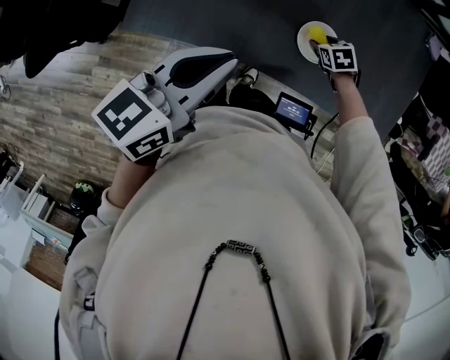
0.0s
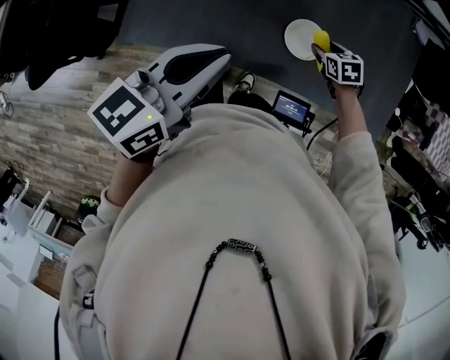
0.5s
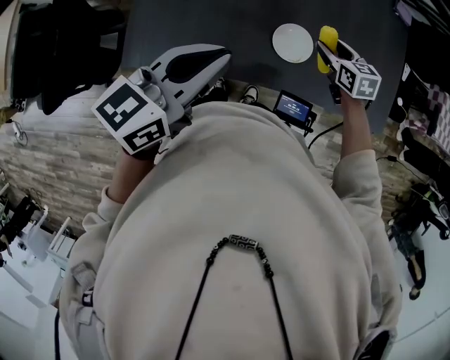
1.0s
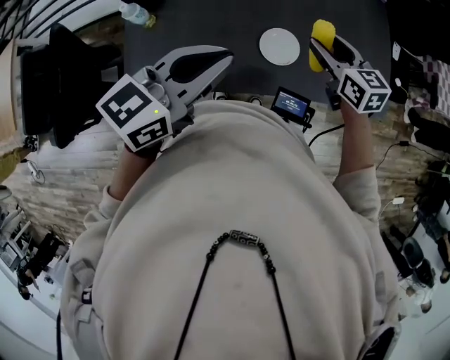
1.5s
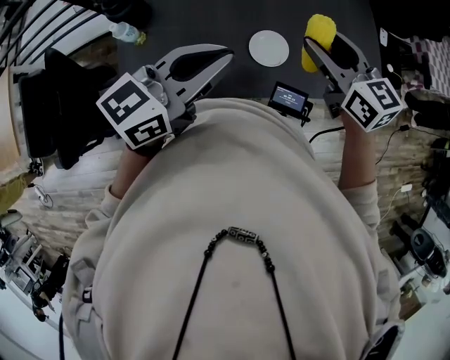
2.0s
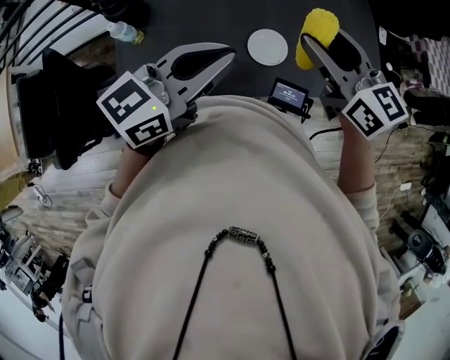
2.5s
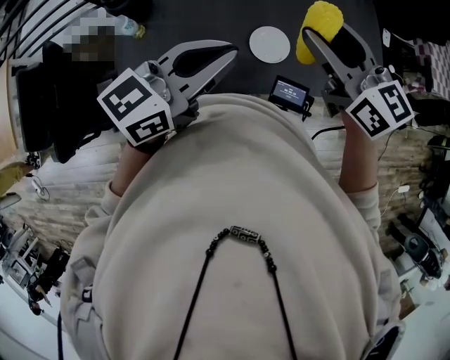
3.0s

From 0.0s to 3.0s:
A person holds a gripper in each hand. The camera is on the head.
From 0.0s to 1.5s: The right gripper travels upward by approximately 30 cm, and tips its fingers upward by about 50 degrees, while the left gripper goes roughly 5 cm upward, and changes its angle by approximately 30 degrees.
From 1.5s to 3.0s: The right gripper goes roughly 15 cm upward, and rotates roughly 20 degrees.

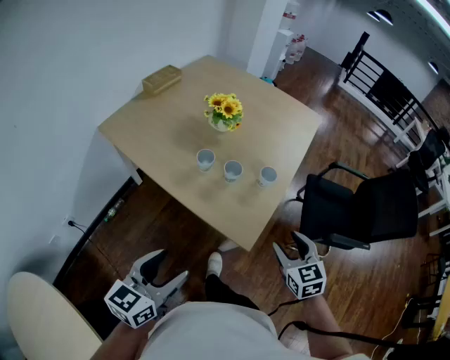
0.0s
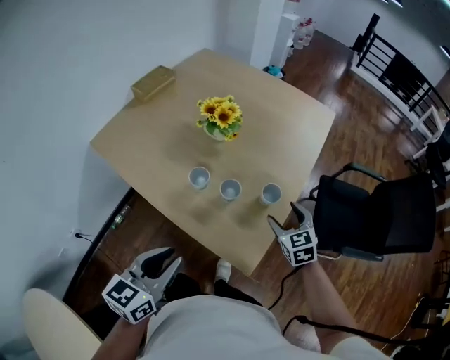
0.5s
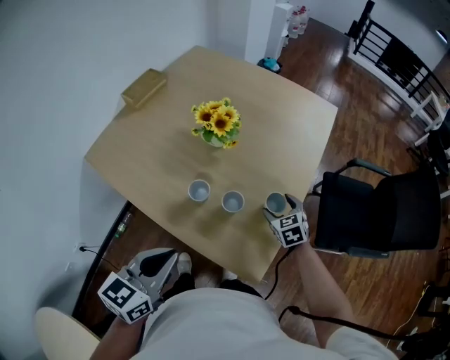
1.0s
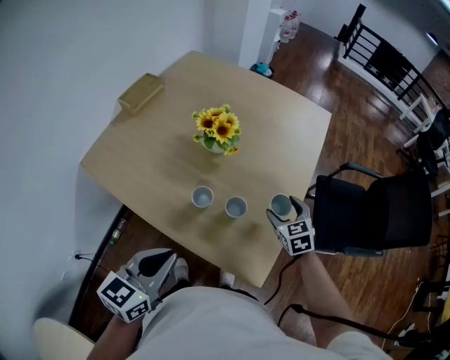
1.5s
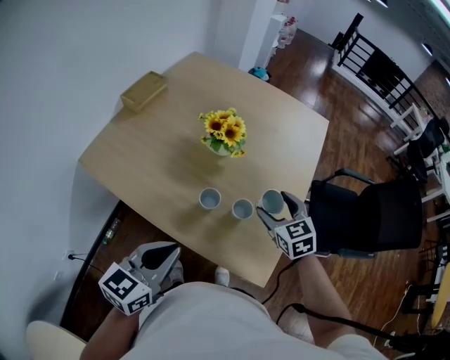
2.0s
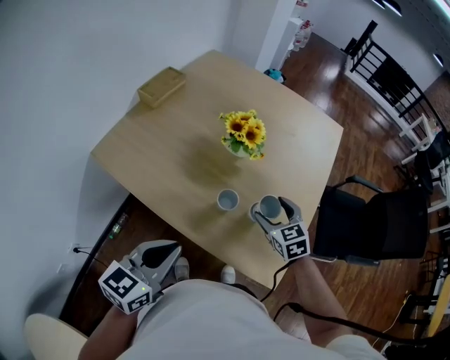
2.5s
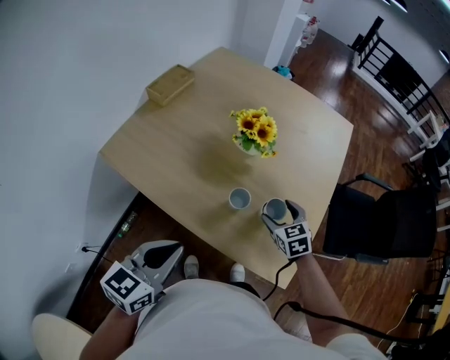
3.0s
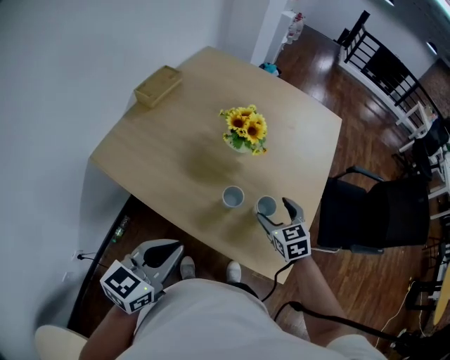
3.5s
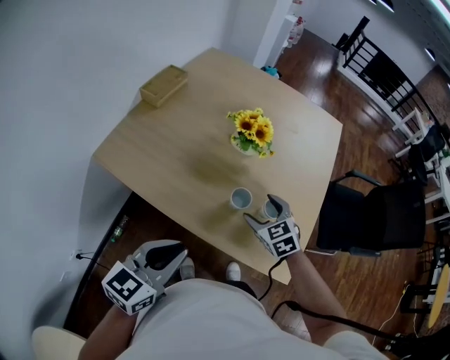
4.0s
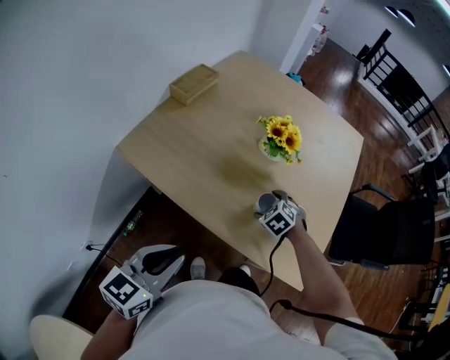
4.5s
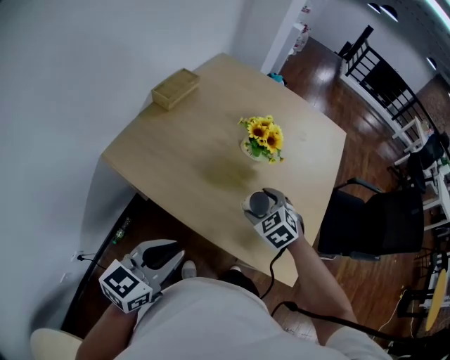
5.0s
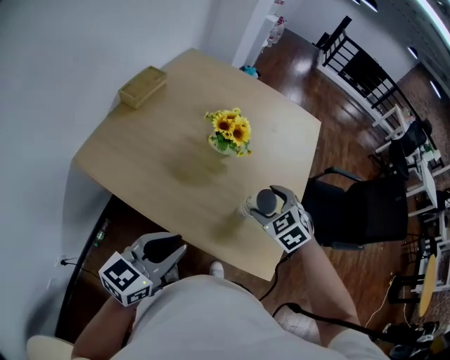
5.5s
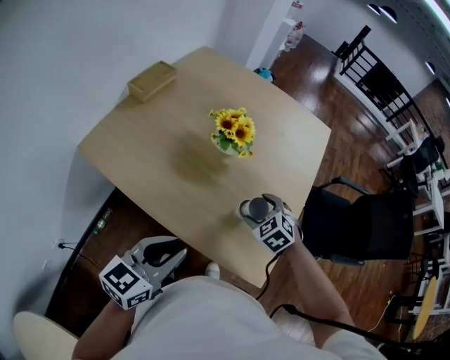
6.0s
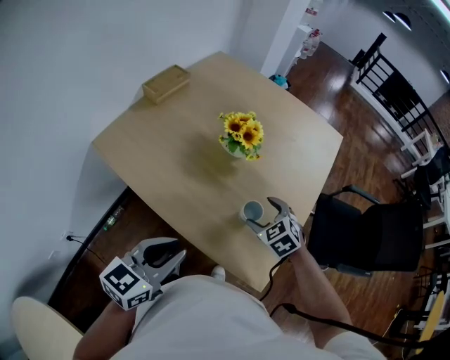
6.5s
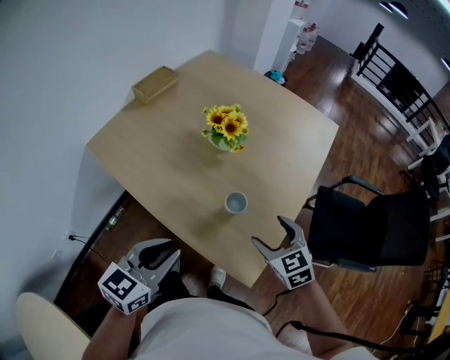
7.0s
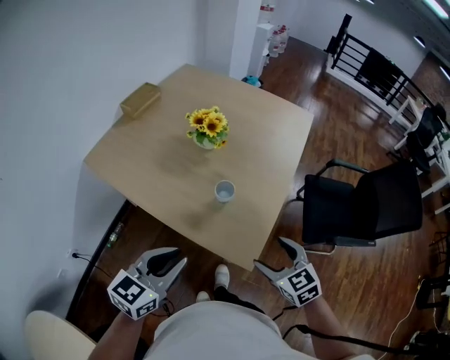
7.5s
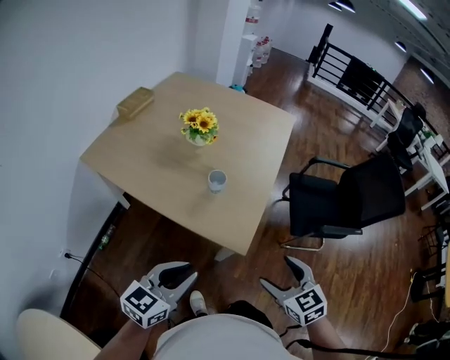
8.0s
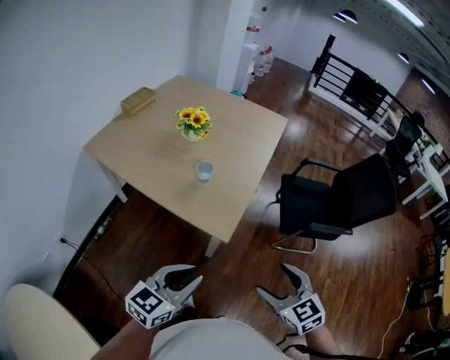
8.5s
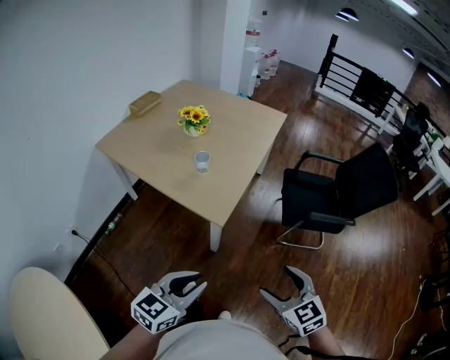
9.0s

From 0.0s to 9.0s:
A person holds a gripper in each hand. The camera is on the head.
From 0.0s to 2.0s: Both grippers travel together forward and to the left, approximately 30 cm. The left gripper closes up.
From 2.0s to 4.5s: The right gripper moves to the left and downward, roughly 25 cm, and turns by roughly 40 degrees. The left gripper shifts about 15 cm to the left.
From 4.5s to 7.0s: The left gripper heads to the right, covering about 20 cm; the right gripper heads to the right, upward and backward, covering some 25 cm, and changes its angle by some 30 degrees.
From 7.0s to 9.0s: The two grippers travel together, backward and to the right, approximately 50 cm.

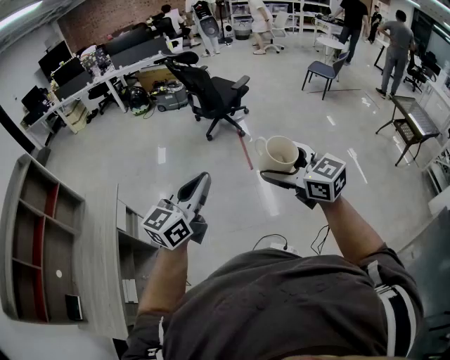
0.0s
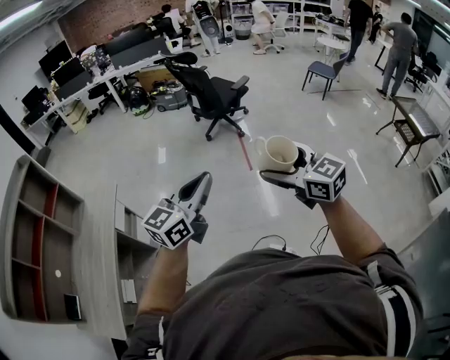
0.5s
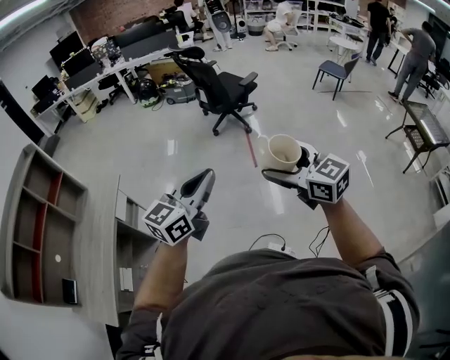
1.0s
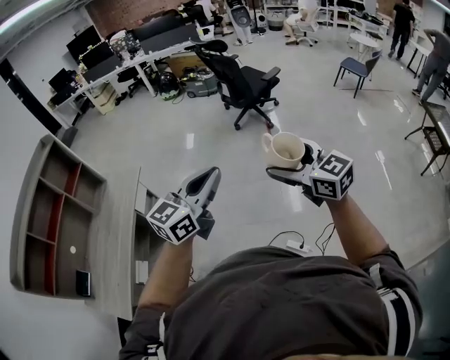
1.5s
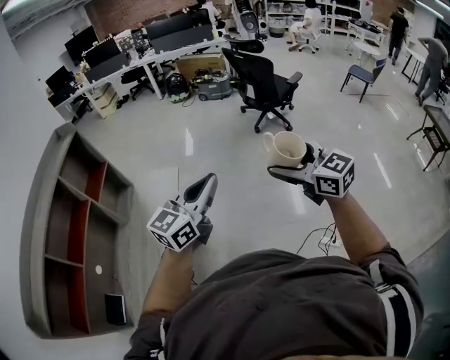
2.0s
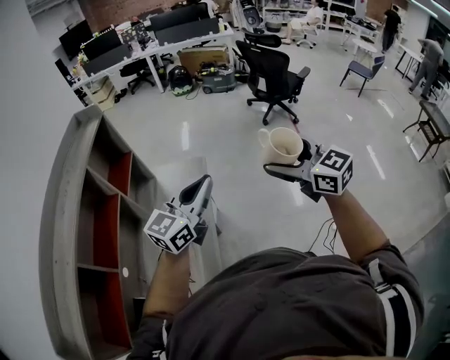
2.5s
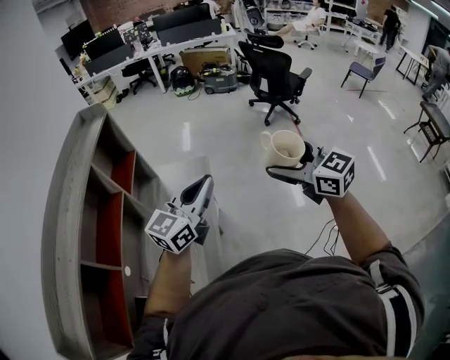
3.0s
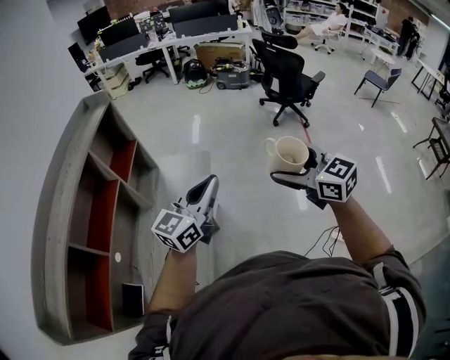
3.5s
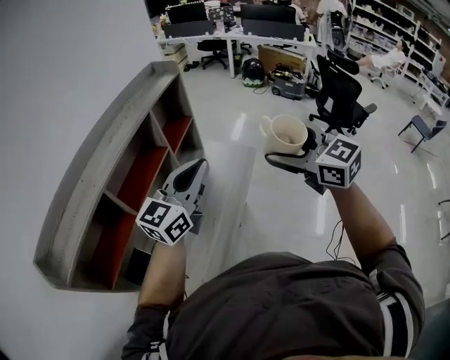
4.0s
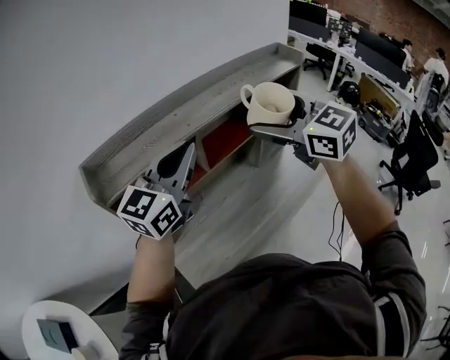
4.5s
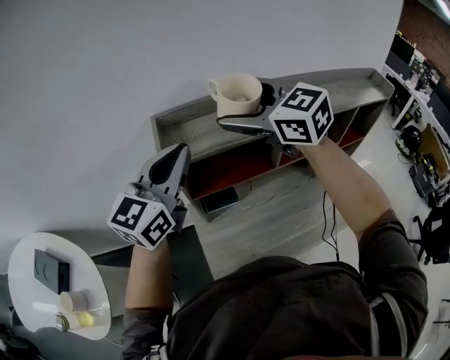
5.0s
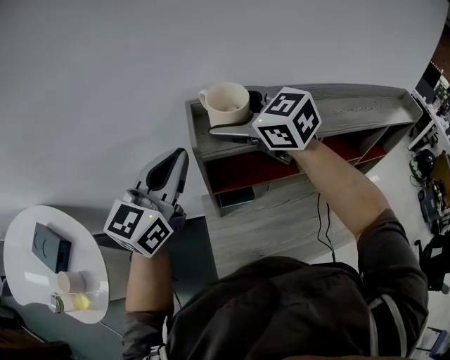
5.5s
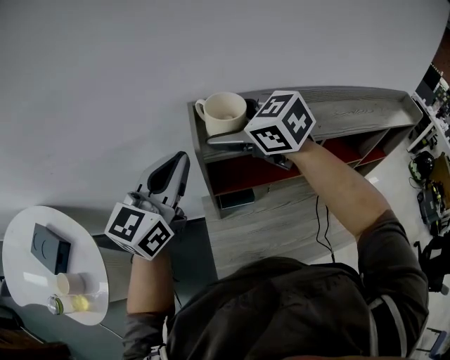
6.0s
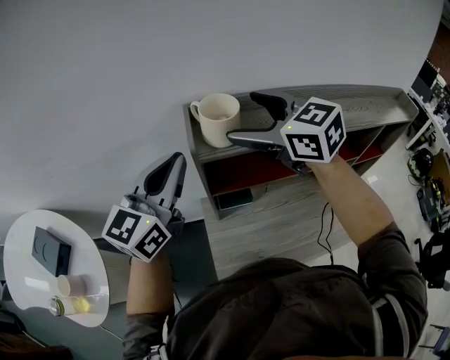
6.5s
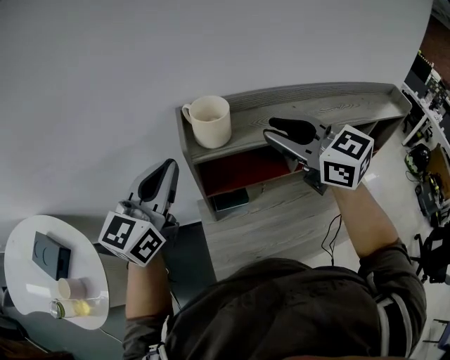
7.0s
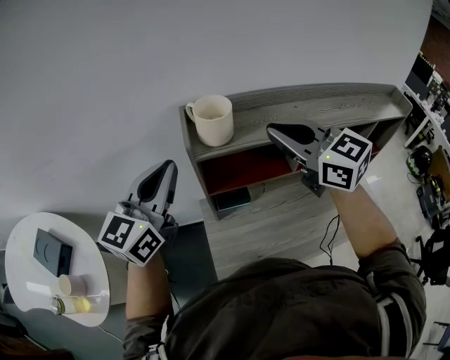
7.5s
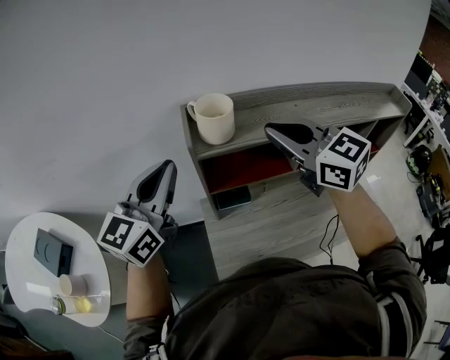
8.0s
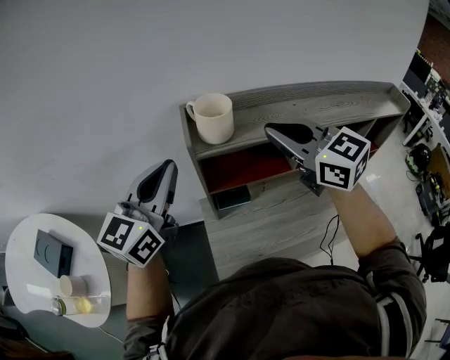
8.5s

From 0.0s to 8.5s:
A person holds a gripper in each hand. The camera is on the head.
From 0.0s to 2.0s: Both grippers travel together to the left, about 35 cm.
From 2.0s to 4.0s: The two grippers go approximately 35 cm to the left. The left gripper swivels some 30 degrees, while the right gripper changes its angle by approximately 20 degrees.
From 4.0s to 6.5s: The pair of grippers is taken about 60 cm. The right gripper changes its angle by about 70 degrees. The left gripper swivels approximately 70 degrees.
From 6.5s to 8.5s: The right gripper heads backward and to the right, covering roughly 10 cm, and closes its fingers.

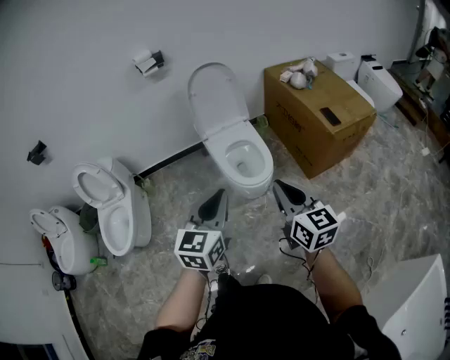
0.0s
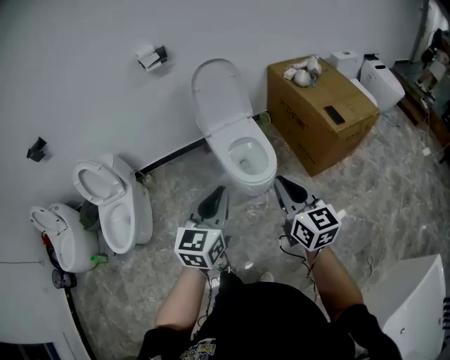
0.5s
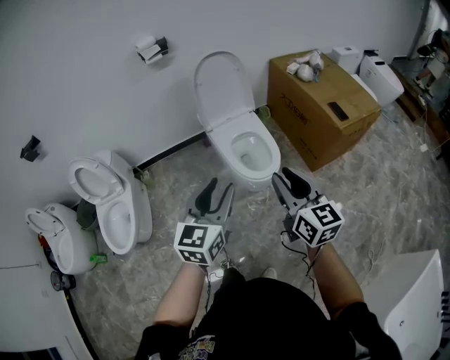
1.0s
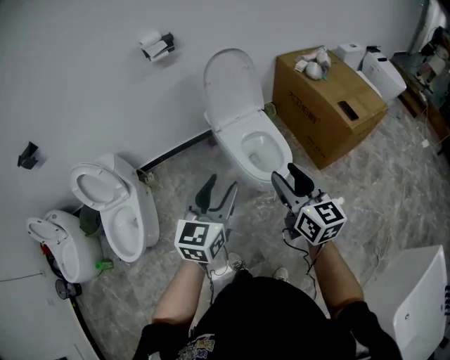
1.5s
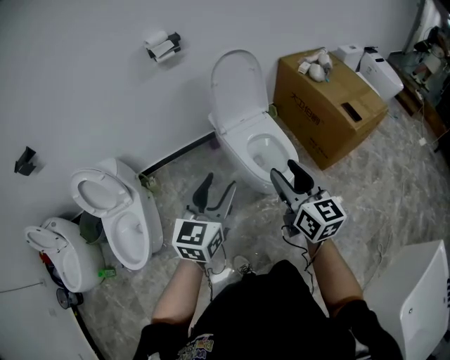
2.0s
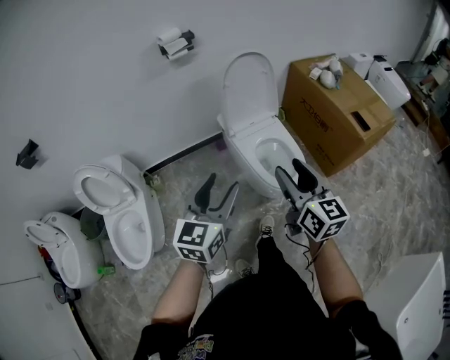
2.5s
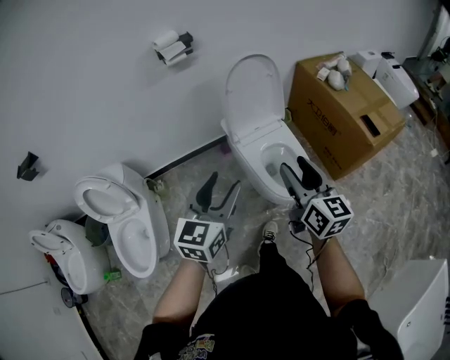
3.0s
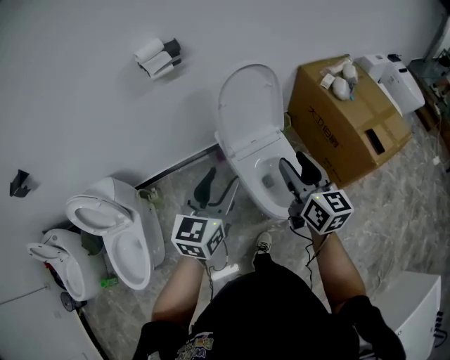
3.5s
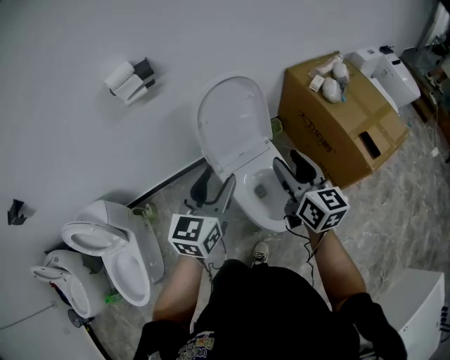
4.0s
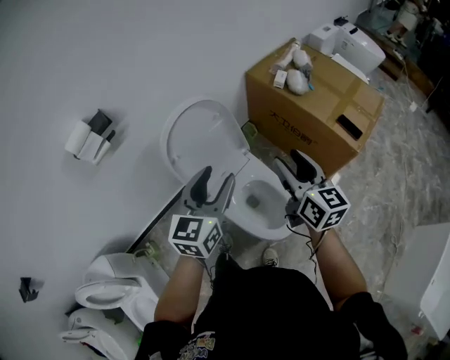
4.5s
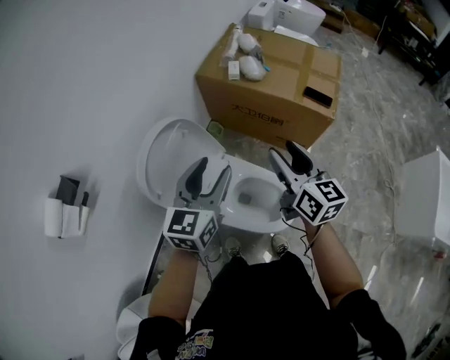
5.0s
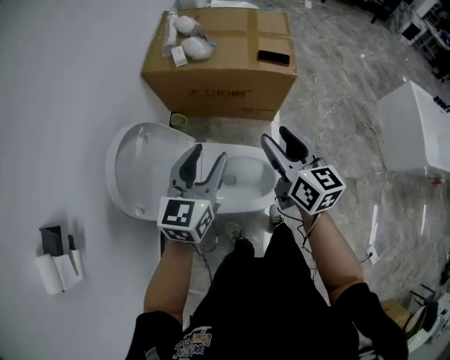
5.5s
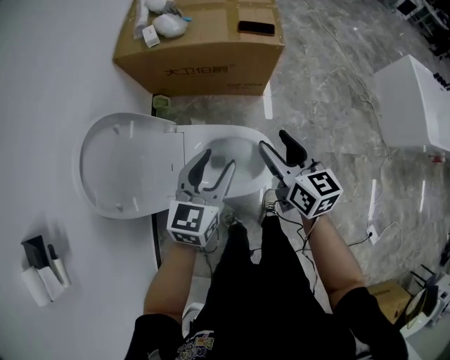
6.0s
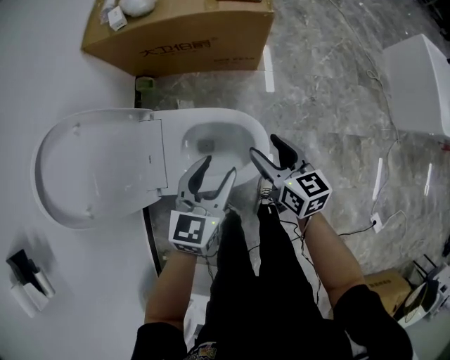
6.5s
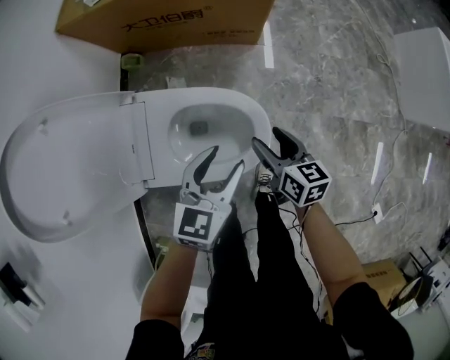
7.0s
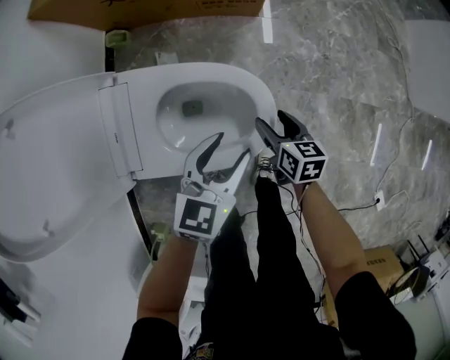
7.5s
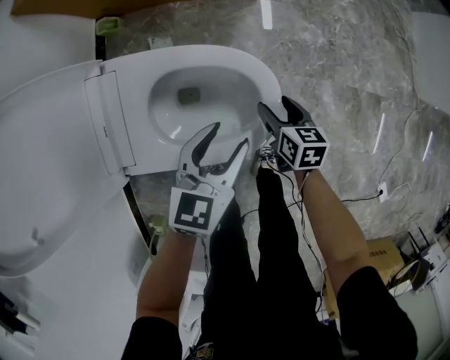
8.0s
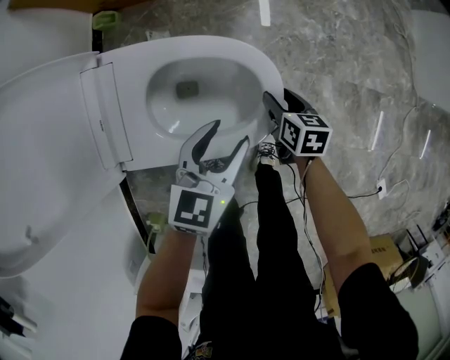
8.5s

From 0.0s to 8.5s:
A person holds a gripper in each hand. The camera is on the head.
From 0.0s to 2.0s: Both grippers travel together to the left and forward, approximately 25 cm. The right gripper opens, while the left gripper opens up.
From 2.0s to 4.0s: Both grippers move forward, some 35 cm.
From 4.0s to 6.5s: Both grippers travel together downward, approximately 30 cm. The right gripper rotates some 50 degrees; the left gripper turns by approximately 70 degrees.
From 6.5s to 8.5s: Both grippers travel together downward, approximately 30 cm. The right gripper rotates roughly 30 degrees.
